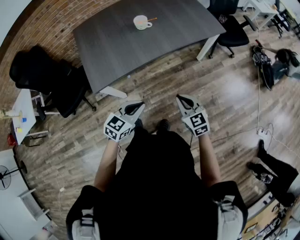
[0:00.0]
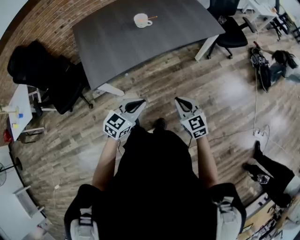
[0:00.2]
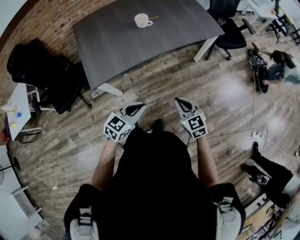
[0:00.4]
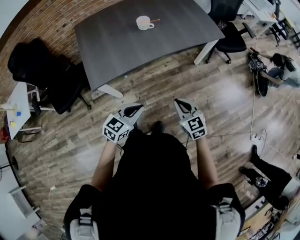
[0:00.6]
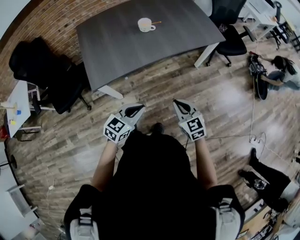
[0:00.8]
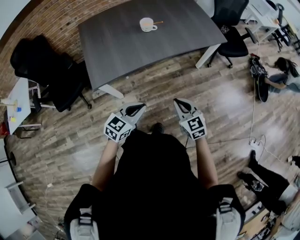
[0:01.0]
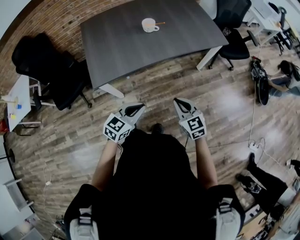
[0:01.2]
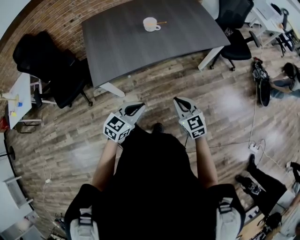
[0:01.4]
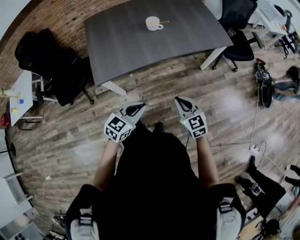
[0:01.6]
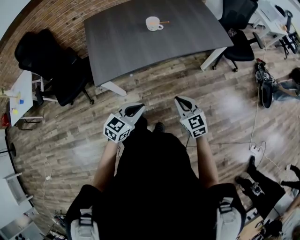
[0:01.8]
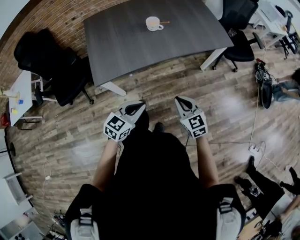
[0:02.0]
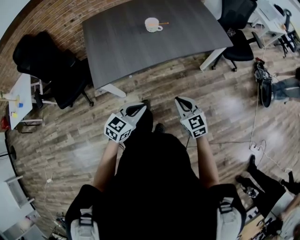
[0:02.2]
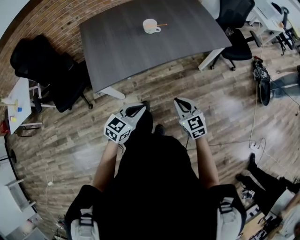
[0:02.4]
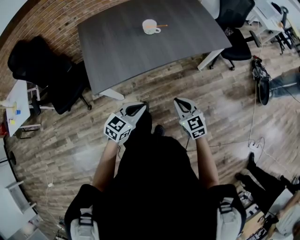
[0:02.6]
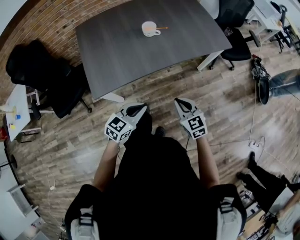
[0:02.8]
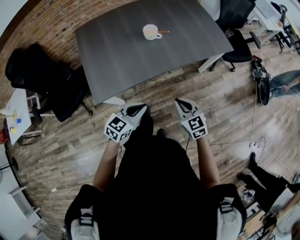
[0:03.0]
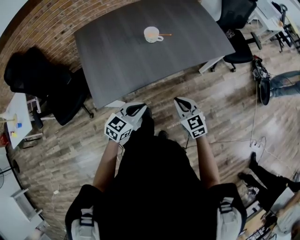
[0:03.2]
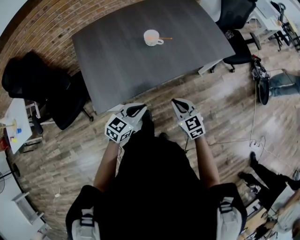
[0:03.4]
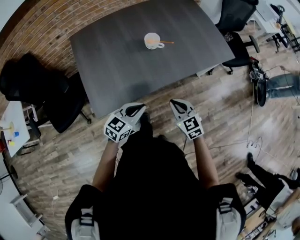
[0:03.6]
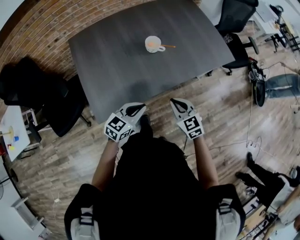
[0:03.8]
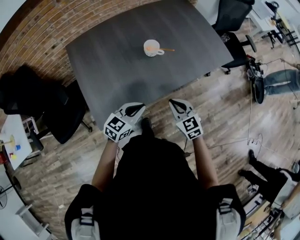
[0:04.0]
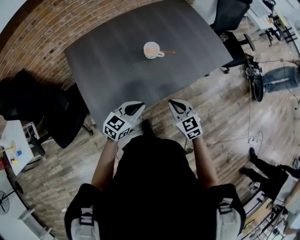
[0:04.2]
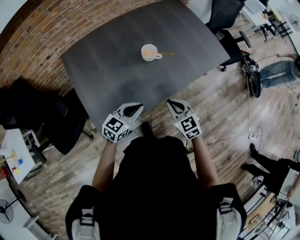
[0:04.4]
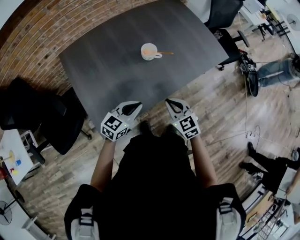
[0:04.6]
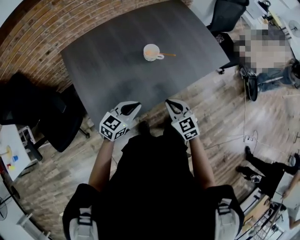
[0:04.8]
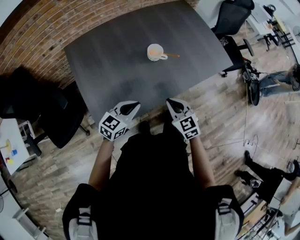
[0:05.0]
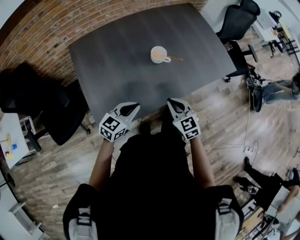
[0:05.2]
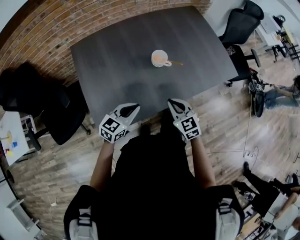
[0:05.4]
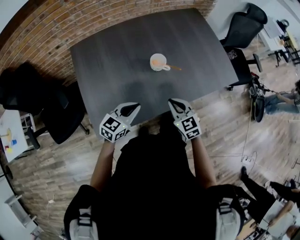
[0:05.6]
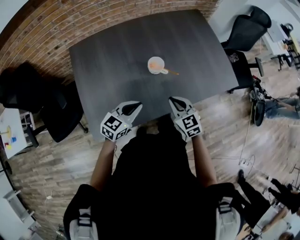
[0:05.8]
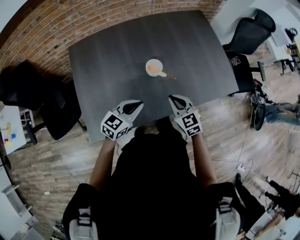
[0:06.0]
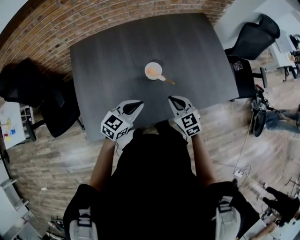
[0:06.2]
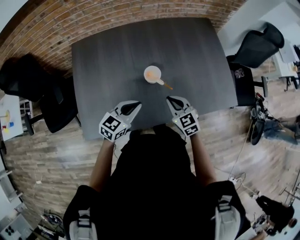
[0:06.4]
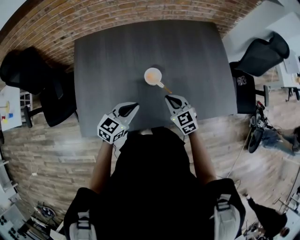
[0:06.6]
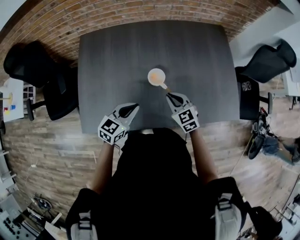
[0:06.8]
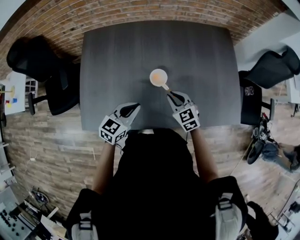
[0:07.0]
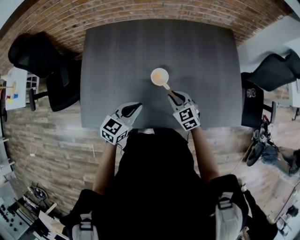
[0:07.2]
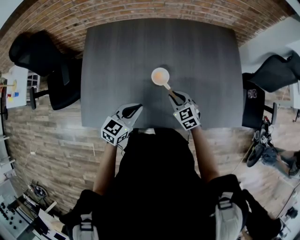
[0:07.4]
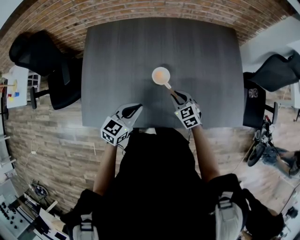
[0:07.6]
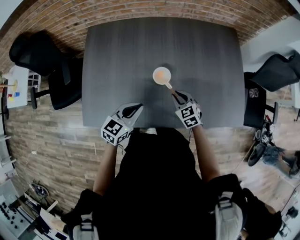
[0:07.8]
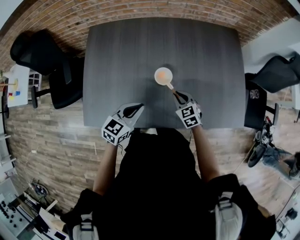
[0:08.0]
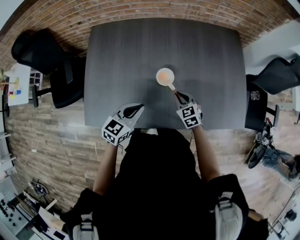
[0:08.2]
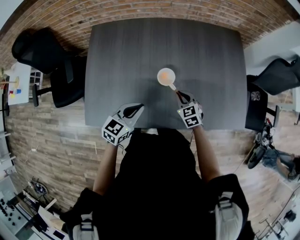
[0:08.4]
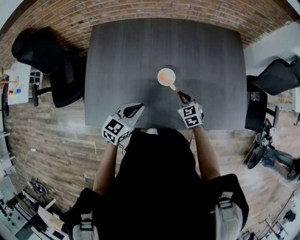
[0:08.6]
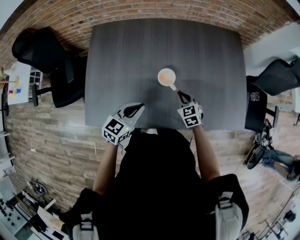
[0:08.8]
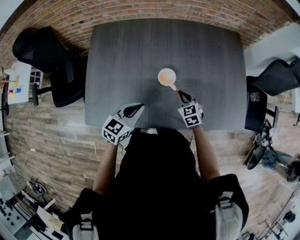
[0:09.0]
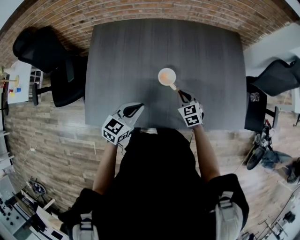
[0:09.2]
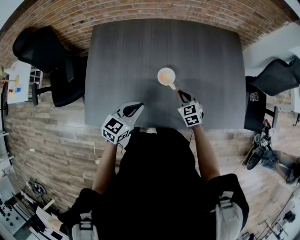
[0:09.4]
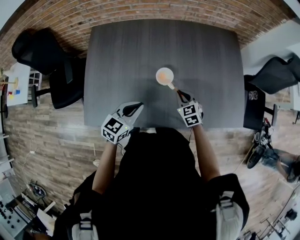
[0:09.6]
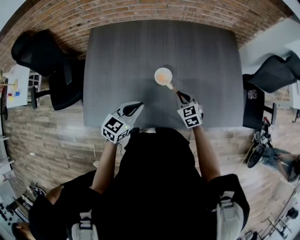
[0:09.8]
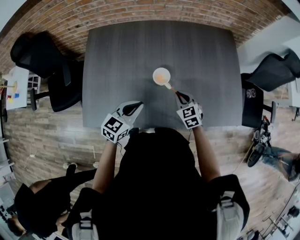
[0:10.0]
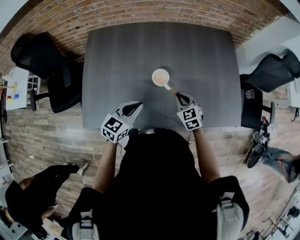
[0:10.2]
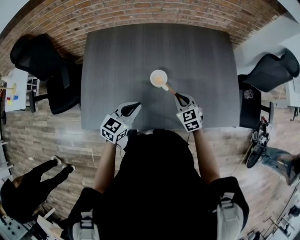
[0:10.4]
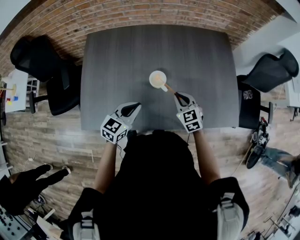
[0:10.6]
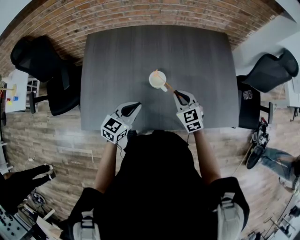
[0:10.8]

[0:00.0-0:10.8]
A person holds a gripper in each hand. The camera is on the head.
0:00.0 to 0:01.6: The grippers move only a little.
0:01.6 to 0:03.0: The left gripper shifts roughly 15 cm forward and to the left; the right gripper heads forward, covering about 10 cm.
0:03.0 to 0:04.6: The grippers both shift forward and to the left by about 20 cm.
0:04.6 to 0:06.2: The grippers both shift forward by some 15 cm.
0:06.2 to 0:07.8: The right gripper moves downward and forward, about 15 cm.
0:07.8 to 0:09.2: The grippers make only small movements.
0:09.2 to 0:10.8: The right gripper moves upward, some 10 cm.

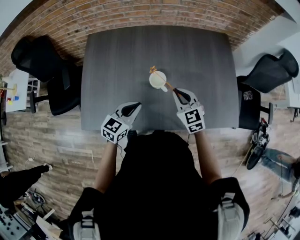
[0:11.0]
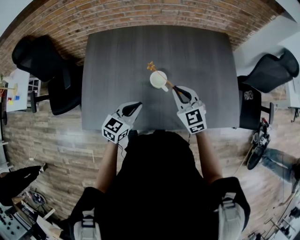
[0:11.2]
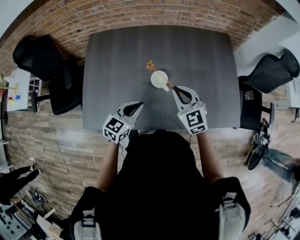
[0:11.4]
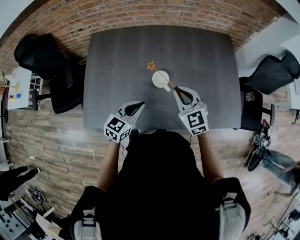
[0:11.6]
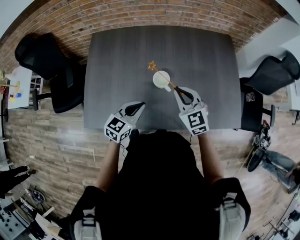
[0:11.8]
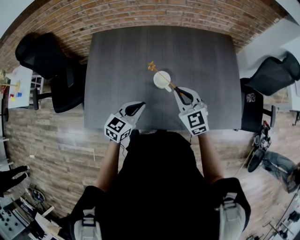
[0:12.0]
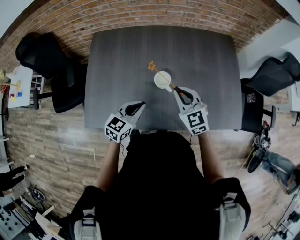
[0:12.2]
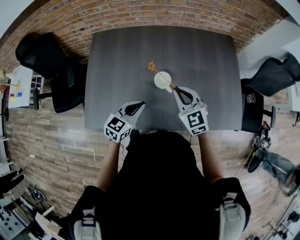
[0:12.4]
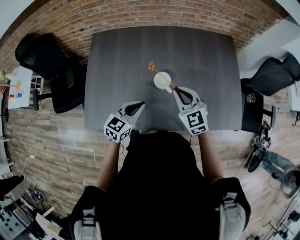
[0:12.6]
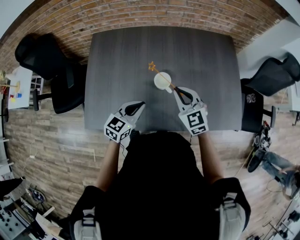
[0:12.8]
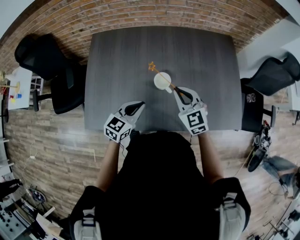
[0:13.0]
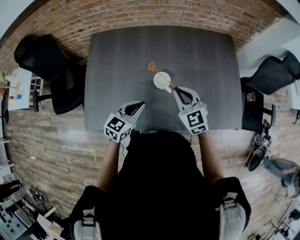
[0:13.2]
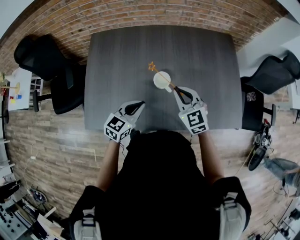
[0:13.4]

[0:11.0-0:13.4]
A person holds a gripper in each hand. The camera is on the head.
0:11.0 to 0:12.2: The grippers make only small movements.
0:12.2 to 0:13.4: The two grippers keep their place.

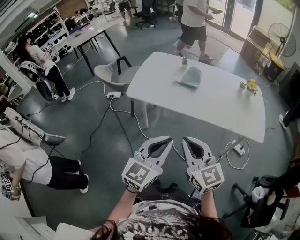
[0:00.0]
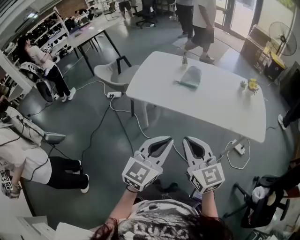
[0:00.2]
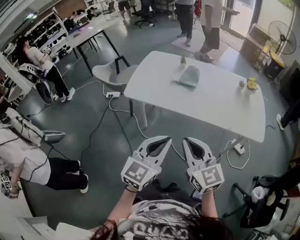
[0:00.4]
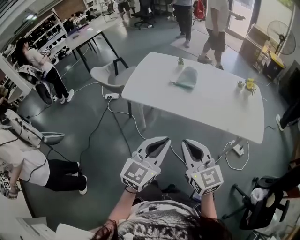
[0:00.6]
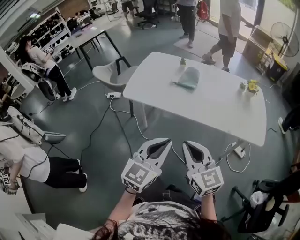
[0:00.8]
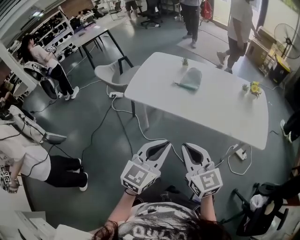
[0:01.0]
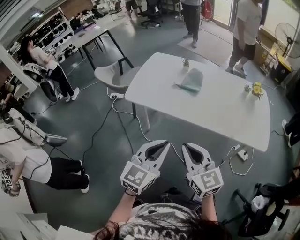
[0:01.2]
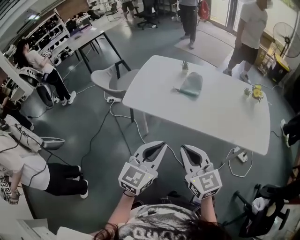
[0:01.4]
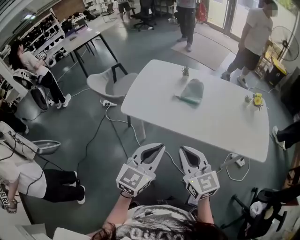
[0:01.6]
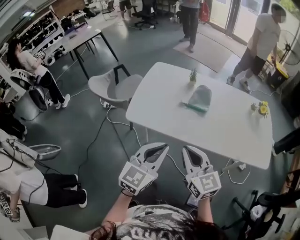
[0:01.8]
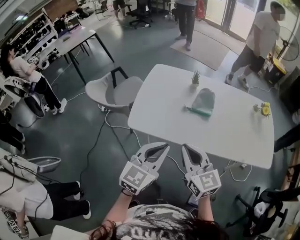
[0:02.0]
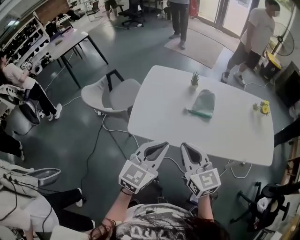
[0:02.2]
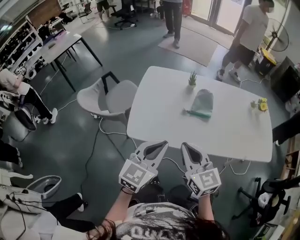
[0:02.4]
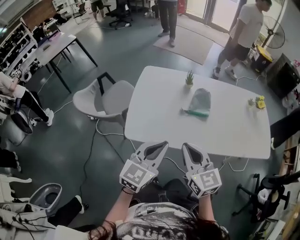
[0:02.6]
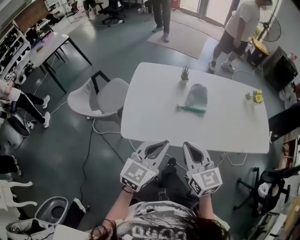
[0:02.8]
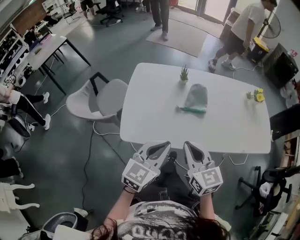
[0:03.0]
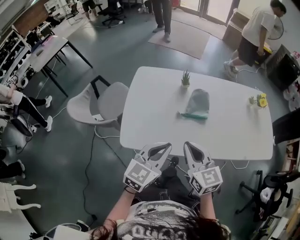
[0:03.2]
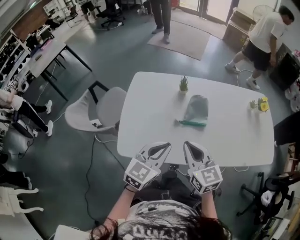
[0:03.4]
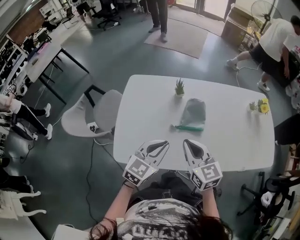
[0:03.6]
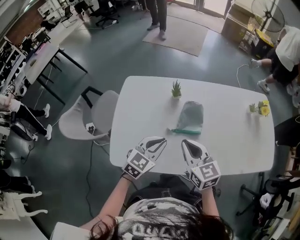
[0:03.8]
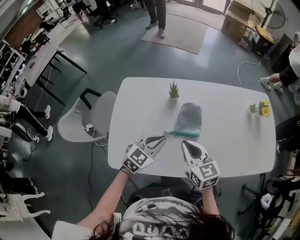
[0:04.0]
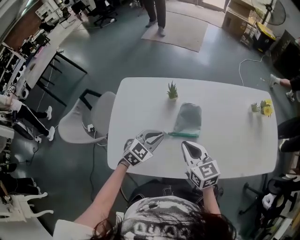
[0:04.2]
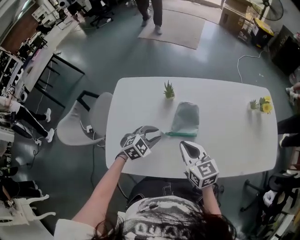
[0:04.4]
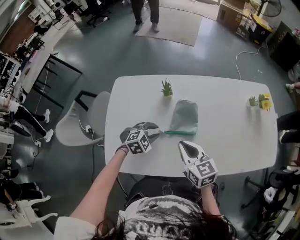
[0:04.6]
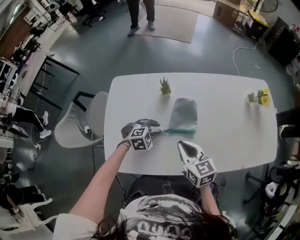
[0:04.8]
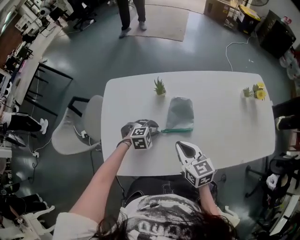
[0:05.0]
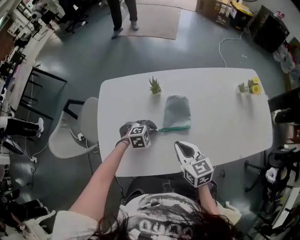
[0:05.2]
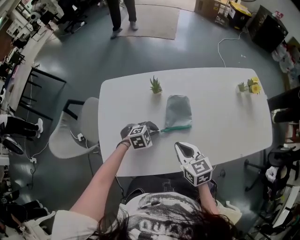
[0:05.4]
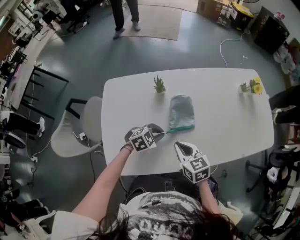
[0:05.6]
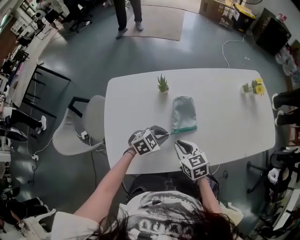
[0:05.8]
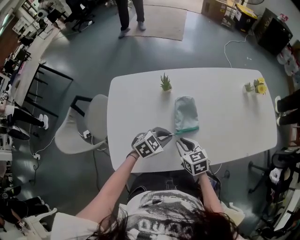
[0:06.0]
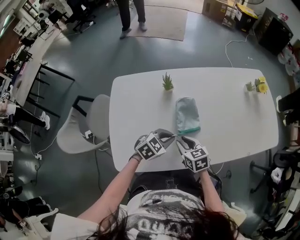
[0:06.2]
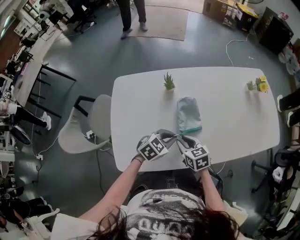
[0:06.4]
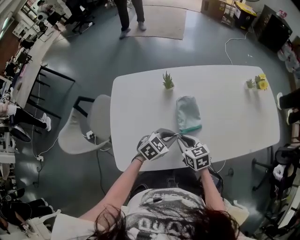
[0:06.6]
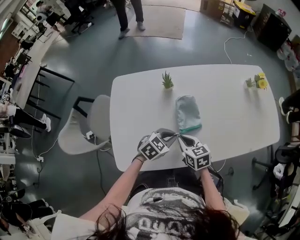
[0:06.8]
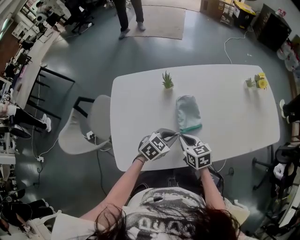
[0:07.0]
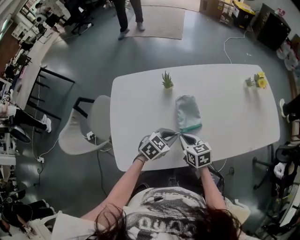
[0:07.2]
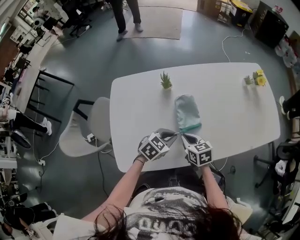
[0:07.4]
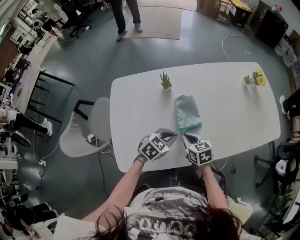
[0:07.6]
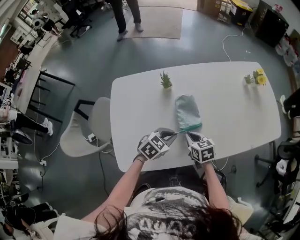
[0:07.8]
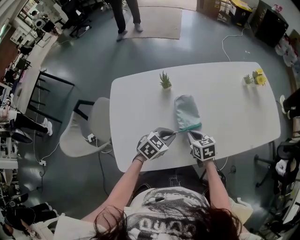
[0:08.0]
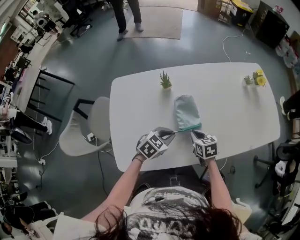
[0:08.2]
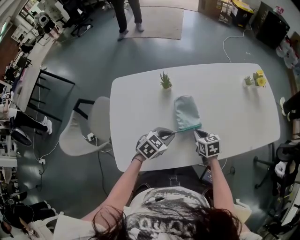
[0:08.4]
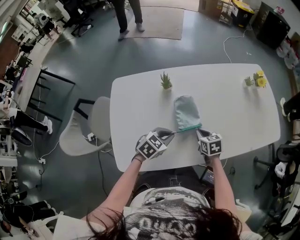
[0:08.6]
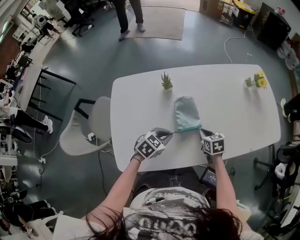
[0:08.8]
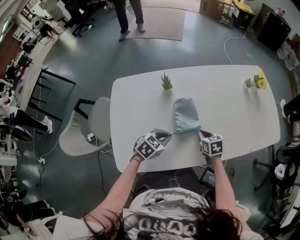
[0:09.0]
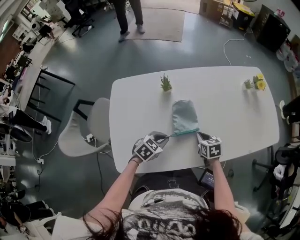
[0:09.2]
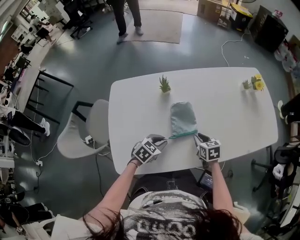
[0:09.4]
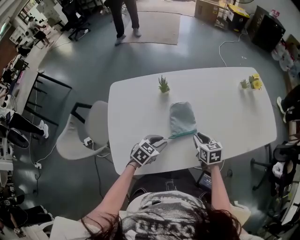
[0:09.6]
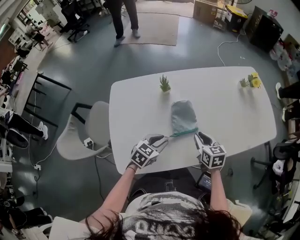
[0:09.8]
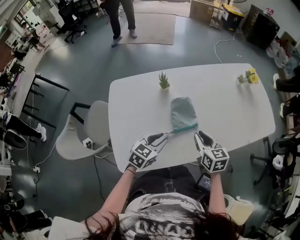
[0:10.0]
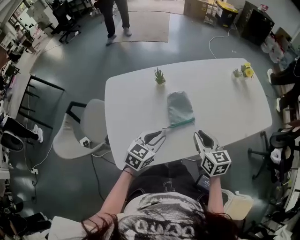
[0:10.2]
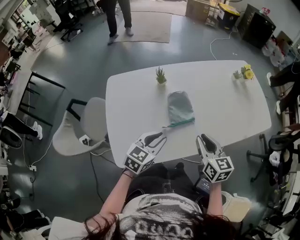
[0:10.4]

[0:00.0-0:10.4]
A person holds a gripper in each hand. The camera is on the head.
0:00.0 to 0:01.4: The grippers both shift forward by some 5 cm.
0:01.4 to 0:03.0: Both grippers travel together forward and to the left, about 25 cm. The left gripper changes its angle by about 20 degrees. Meanwhile the right gripper swivels approximately 20 degrees.
0:03.0 to 0:04.4: Both grippers move forward and downward, some 25 cm. The left gripper tilts its fingers some 30 degrees downward, and opens up.
0:04.4 to 0:06.0: The right gripper moves downward, about 10 cm. Meanwhile the left gripper moves some 5 cm.
0:06.0 to 0:07.4: The grippers stay close to where they were, moving slightly.
0:07.4 to 0:09.0: The right gripper heads to the right and forward, covering roughly 10 cm.
0:09.0 to 0:10.4: The right gripper heads upward and backward, covering some 20 cm, and turns by some 30 degrees; the left gripper shifts some 10 cm upward and backward, and swivels approximately 20 degrees.
